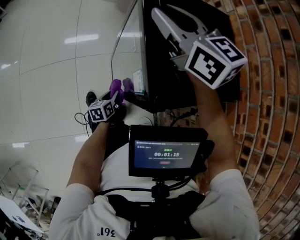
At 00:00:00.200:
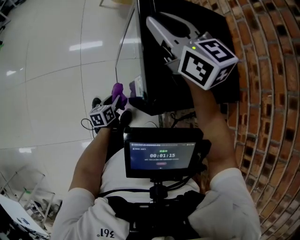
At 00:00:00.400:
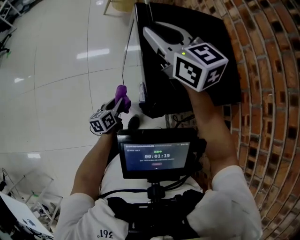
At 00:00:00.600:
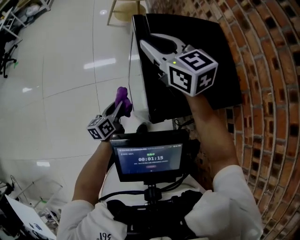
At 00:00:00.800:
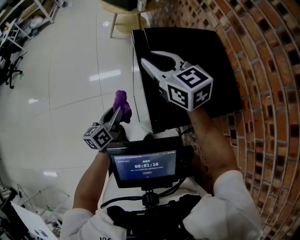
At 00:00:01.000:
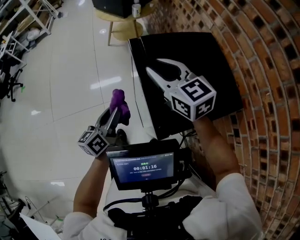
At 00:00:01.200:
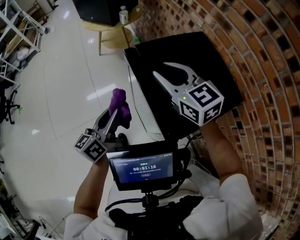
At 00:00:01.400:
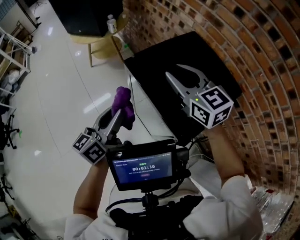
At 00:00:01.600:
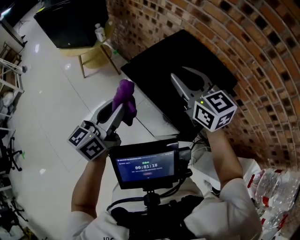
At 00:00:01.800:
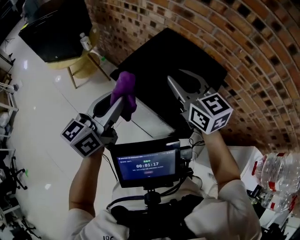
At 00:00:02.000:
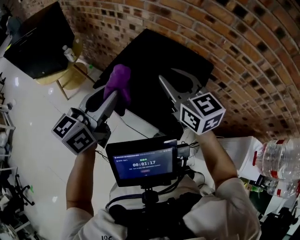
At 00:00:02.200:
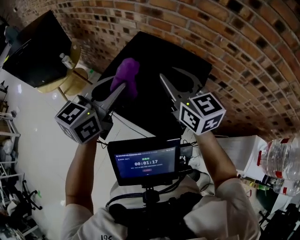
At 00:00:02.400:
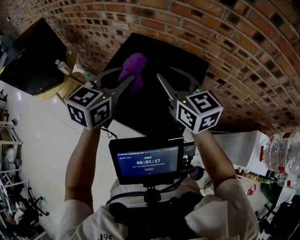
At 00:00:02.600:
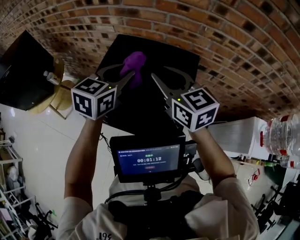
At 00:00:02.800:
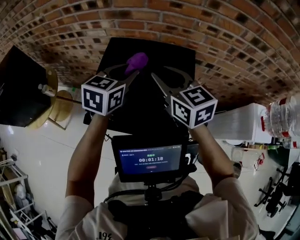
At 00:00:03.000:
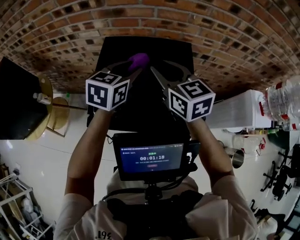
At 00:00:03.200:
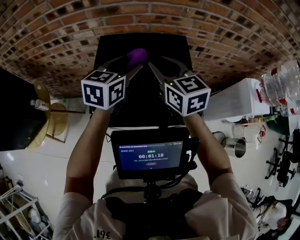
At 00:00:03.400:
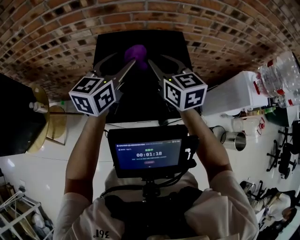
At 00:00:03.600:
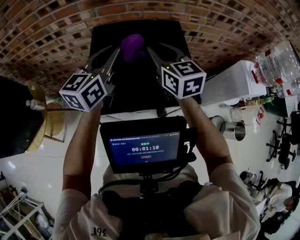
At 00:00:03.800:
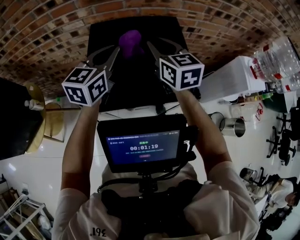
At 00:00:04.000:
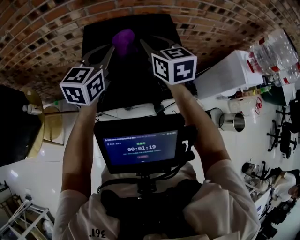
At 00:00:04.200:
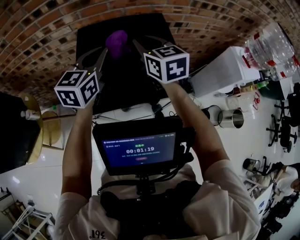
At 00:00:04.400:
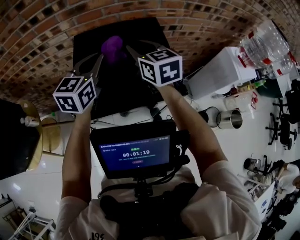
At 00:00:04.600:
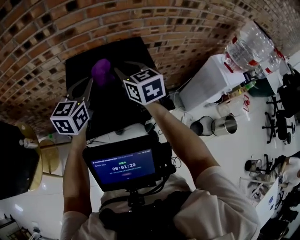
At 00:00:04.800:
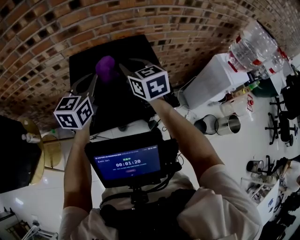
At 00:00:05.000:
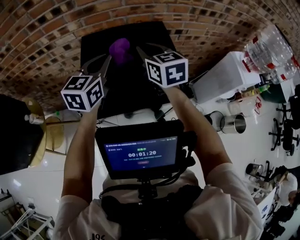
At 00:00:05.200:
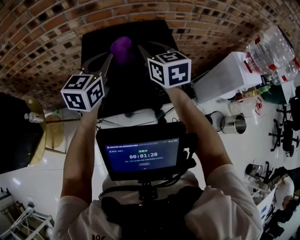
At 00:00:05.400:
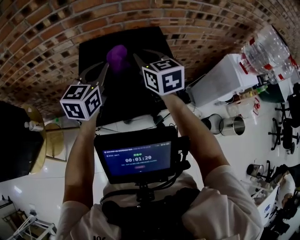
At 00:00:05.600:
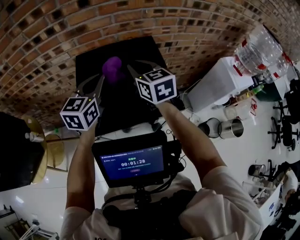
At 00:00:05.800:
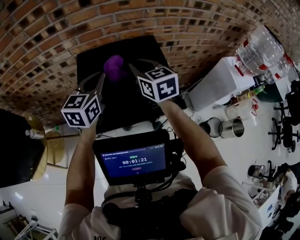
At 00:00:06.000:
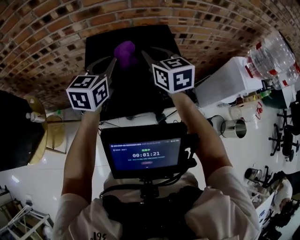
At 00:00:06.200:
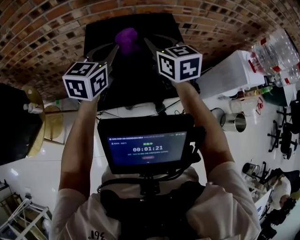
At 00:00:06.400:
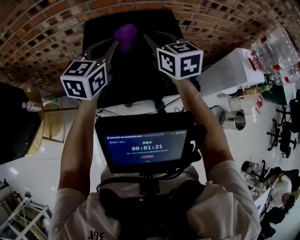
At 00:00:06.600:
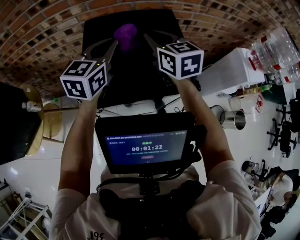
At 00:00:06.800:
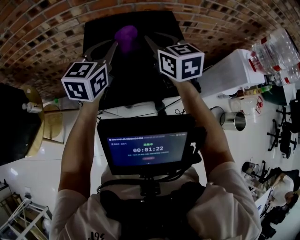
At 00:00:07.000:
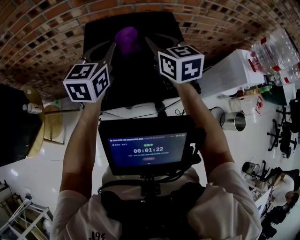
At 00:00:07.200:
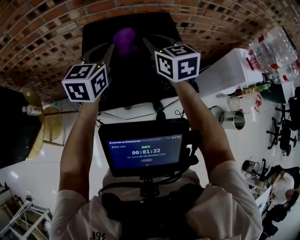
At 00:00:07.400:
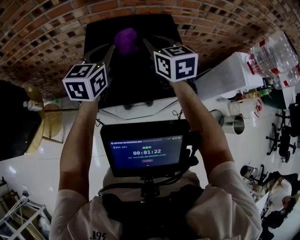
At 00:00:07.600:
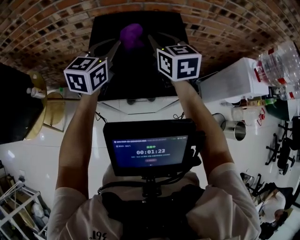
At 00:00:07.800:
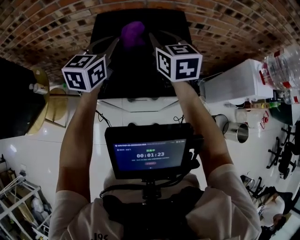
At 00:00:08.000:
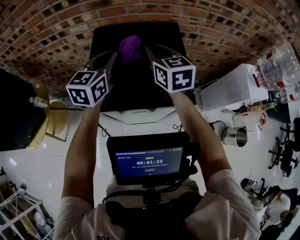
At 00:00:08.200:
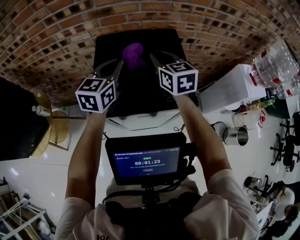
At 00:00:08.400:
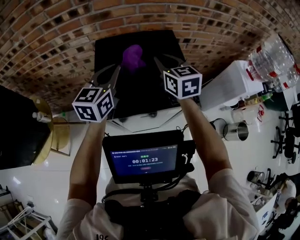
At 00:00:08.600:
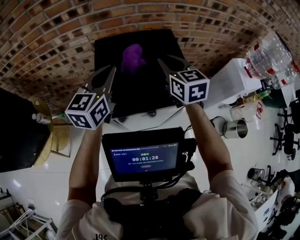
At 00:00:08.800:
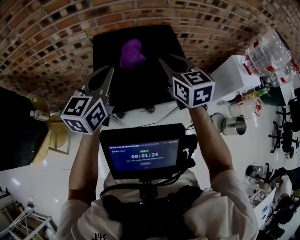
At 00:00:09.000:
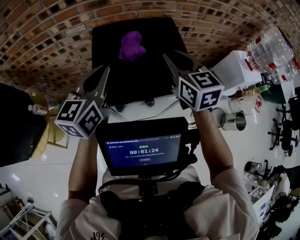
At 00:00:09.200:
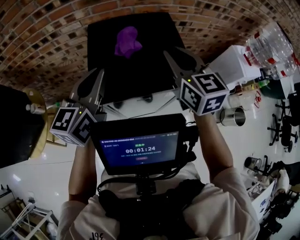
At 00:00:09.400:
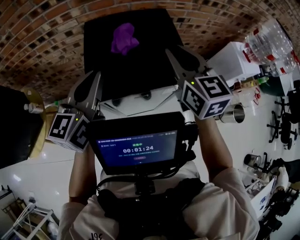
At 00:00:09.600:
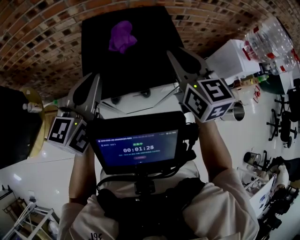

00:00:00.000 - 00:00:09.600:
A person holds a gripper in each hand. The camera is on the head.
00:00:00.000 - 00:00:01.600: The left gripper heads upward, covering some 50 cm, and angles its fingers upward, by roughly 40 degrees; the right gripper shifts by roughly 10 cm, and changes its angle by some 40 degrees.
00:00:01.600 - 00:00:03.200: The right gripper ends up some 15 cm from where it was, and rotates roughly 50 degrees. Meanwhile the left gripper goes upward and returns, about 5 cm each way, rotates roughly 60 degrees, and opens its fingers.
00:00:03.200 - 00:00:04.800: The left gripper closes its fingers.
00:00:04.800 - 00:00:06.400: Neither gripper changes place.
00:00:06.400 - 00:00:08.000: The grippers make only small movements.
00:00:08.000 - 00:00:09.600: The right gripper goes roughly 15 cm backward, upward and to the right. The left gripper goes roughly 15 cm backward.

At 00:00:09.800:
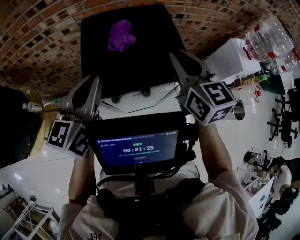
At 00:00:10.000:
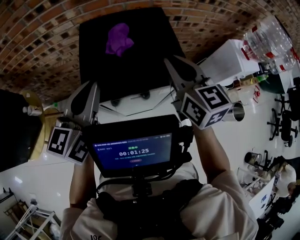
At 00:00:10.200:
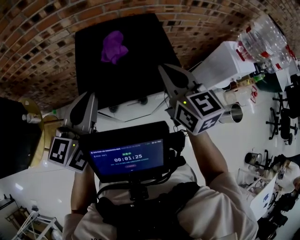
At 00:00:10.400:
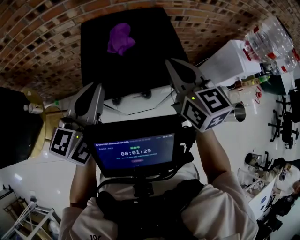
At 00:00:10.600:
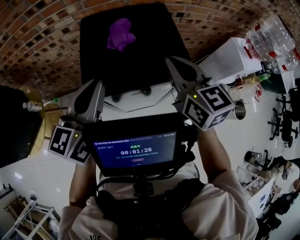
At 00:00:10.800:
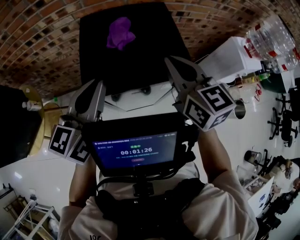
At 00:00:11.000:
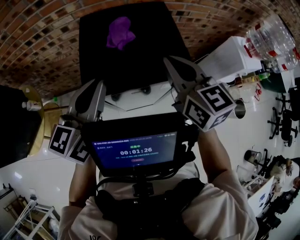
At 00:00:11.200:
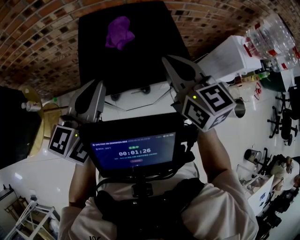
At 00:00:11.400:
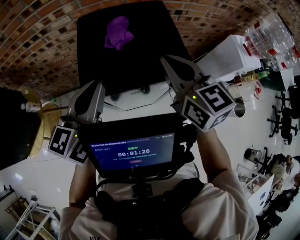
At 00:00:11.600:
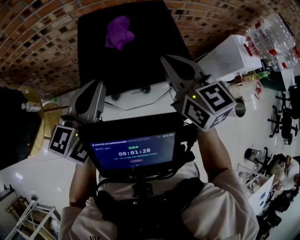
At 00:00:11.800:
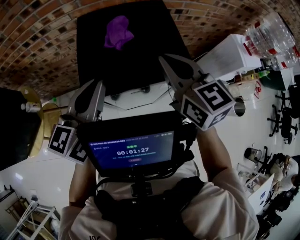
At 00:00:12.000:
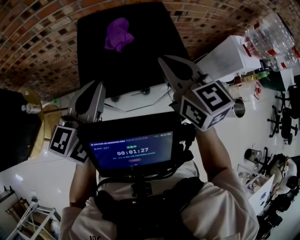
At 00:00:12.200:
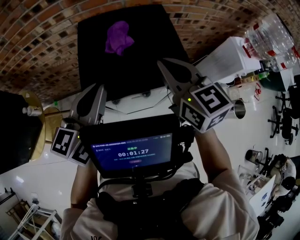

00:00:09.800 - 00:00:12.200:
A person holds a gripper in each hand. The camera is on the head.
00:00:09.800 - 00:00:11.000: There are only small adjustments of the grippers.
00:00:11.000 - 00:00:12.200: Both grippers stay about where they are.

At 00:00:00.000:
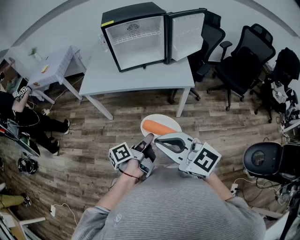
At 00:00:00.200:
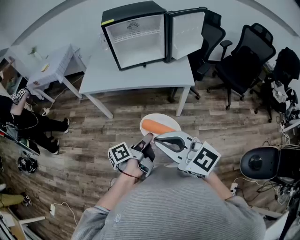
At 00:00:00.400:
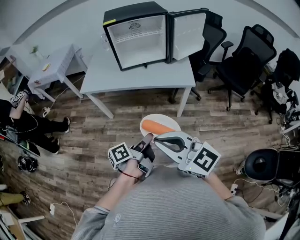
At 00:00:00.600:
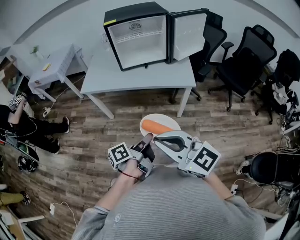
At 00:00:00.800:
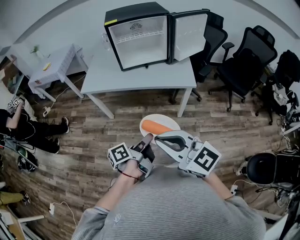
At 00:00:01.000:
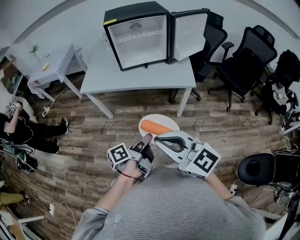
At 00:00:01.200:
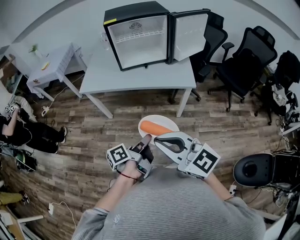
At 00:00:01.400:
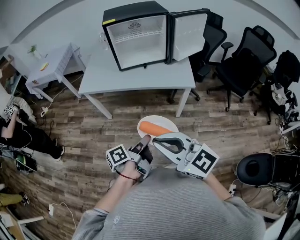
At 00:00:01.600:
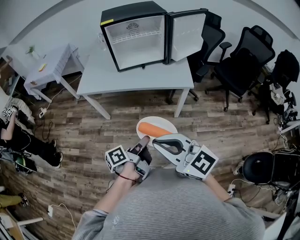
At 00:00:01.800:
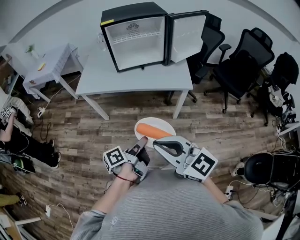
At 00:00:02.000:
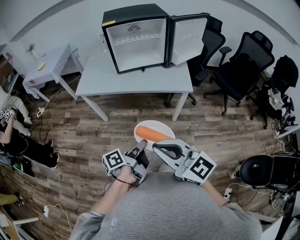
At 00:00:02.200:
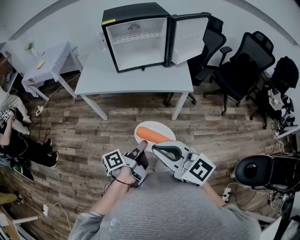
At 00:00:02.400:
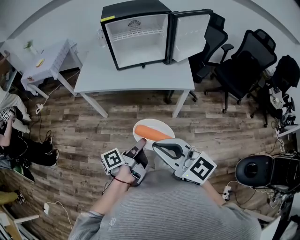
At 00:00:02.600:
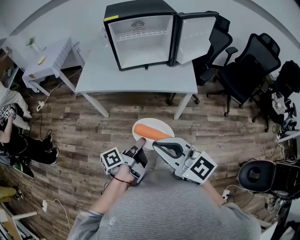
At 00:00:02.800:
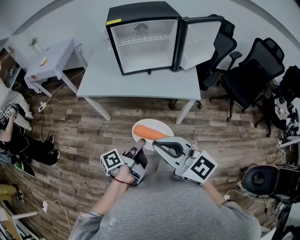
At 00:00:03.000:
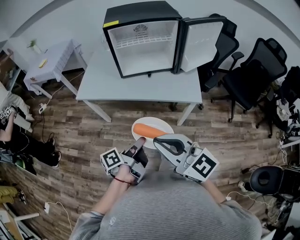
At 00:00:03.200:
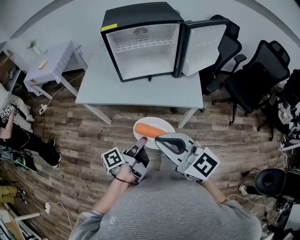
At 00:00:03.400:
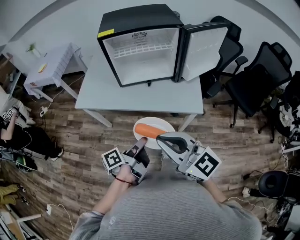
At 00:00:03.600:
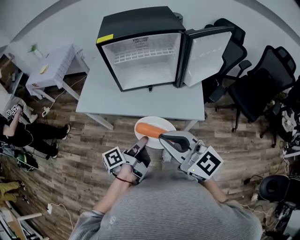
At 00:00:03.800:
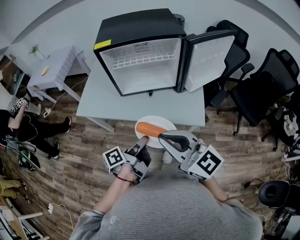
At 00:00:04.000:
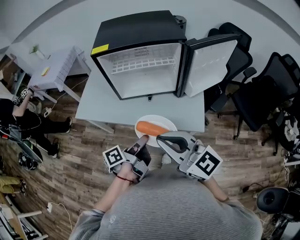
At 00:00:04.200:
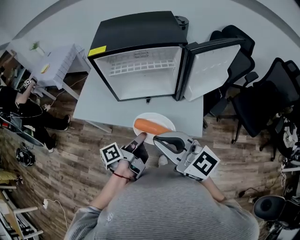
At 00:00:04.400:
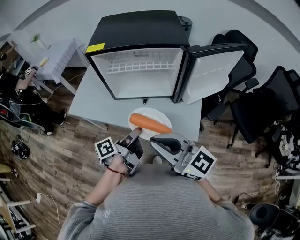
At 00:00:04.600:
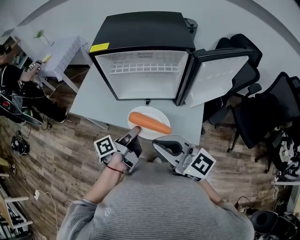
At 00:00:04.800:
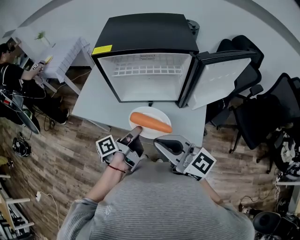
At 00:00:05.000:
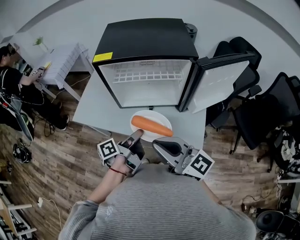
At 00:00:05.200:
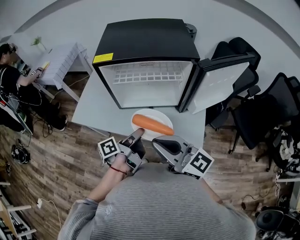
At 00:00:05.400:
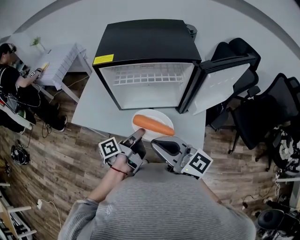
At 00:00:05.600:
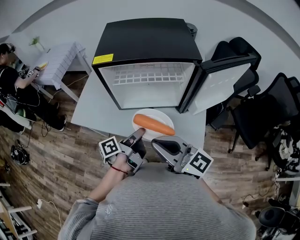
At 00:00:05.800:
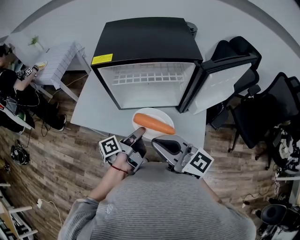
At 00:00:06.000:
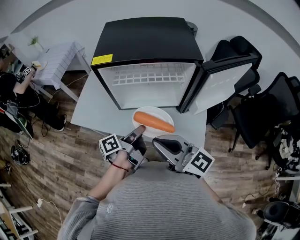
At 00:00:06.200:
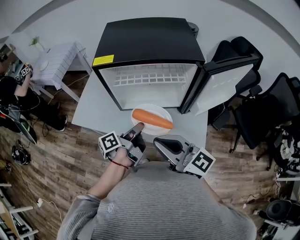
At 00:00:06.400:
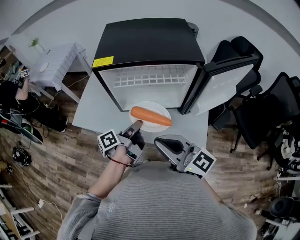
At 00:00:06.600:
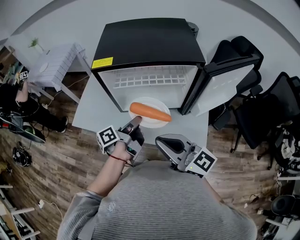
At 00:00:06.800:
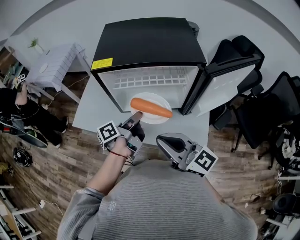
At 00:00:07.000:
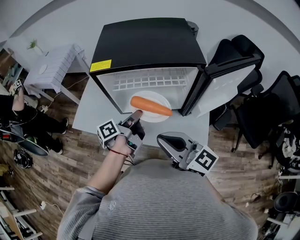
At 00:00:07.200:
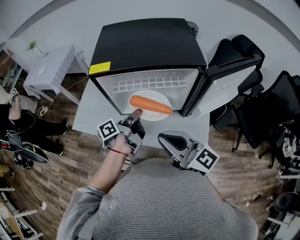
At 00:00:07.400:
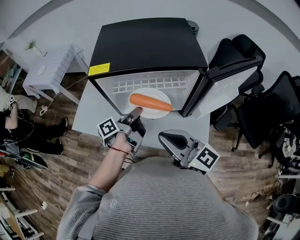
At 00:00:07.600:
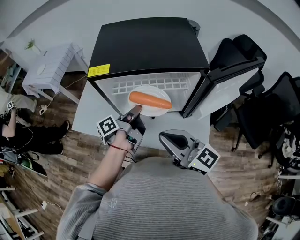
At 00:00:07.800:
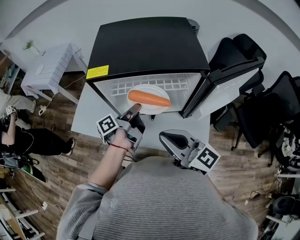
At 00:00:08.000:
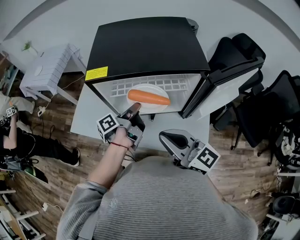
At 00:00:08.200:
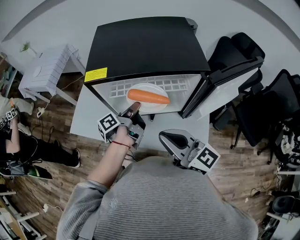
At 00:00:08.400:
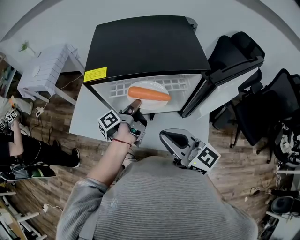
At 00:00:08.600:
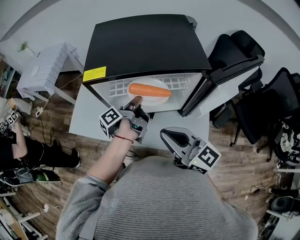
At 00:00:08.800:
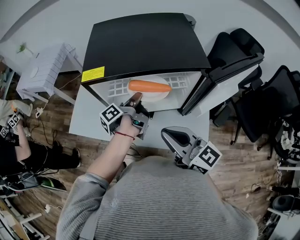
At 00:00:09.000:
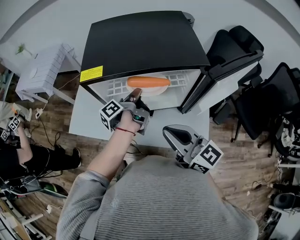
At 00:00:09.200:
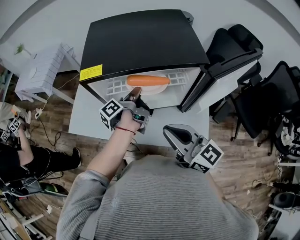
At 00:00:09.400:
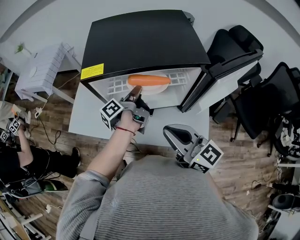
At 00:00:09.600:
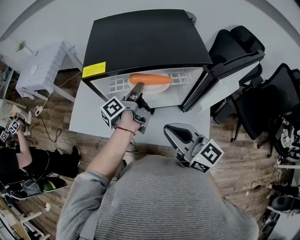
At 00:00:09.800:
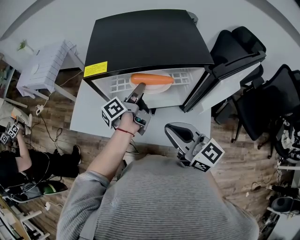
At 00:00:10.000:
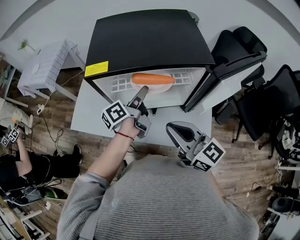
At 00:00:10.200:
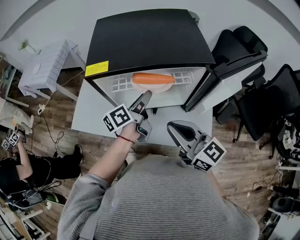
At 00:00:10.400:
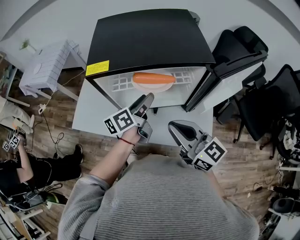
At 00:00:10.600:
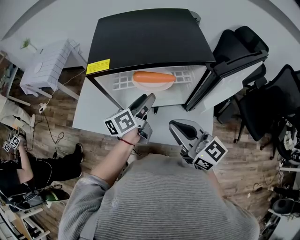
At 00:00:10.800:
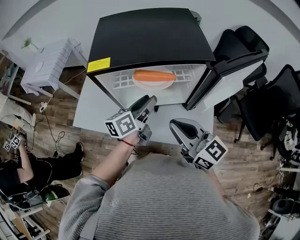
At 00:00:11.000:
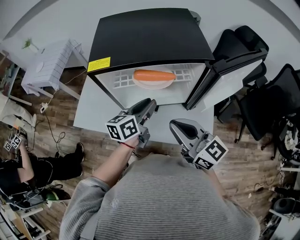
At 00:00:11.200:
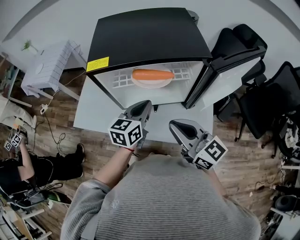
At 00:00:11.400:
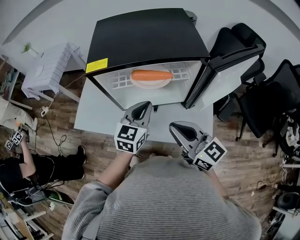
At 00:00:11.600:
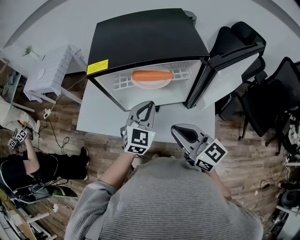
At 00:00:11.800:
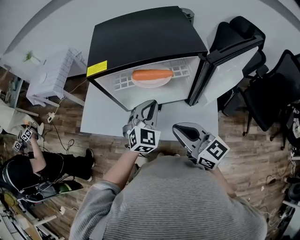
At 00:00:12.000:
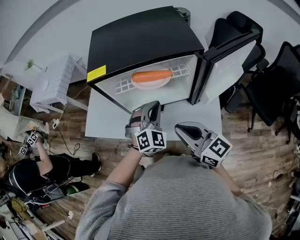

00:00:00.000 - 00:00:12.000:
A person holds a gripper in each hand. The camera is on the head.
00:00:01.600 - 00:00:03.000: The right gripper shifts by some 15 cm.
00:00:03.000 - 00:00:04.400: The right gripper shifts by roughly 25 cm.
00:00:04.400 - 00:00:06.000: The right gripper moves about 10 cm.
00:00:06.000 - 00:00:07.600: The right gripper ends up roughly 10 cm from where it was.
00:00:10.400 - 00:00:12.000: The right gripper ends up approximately 5 cm from where it was.
